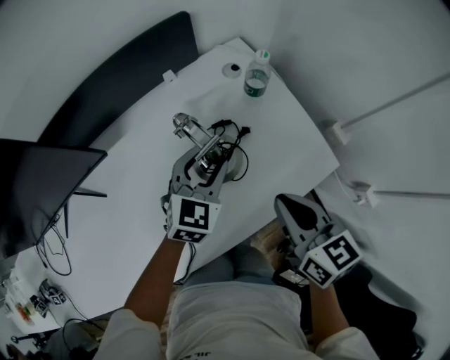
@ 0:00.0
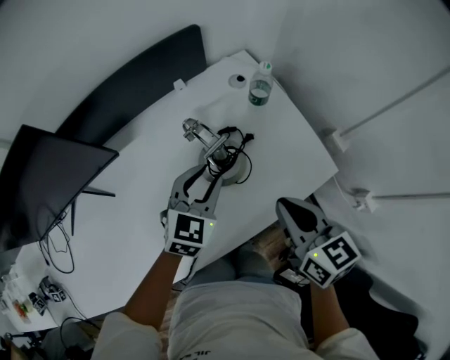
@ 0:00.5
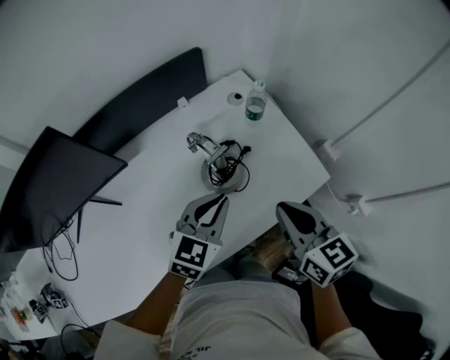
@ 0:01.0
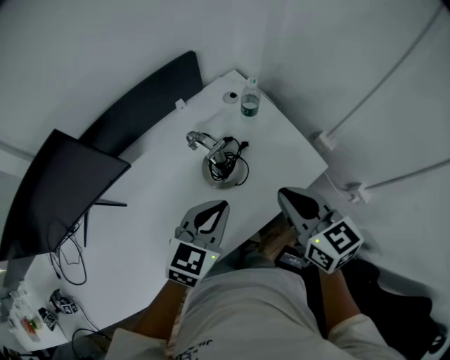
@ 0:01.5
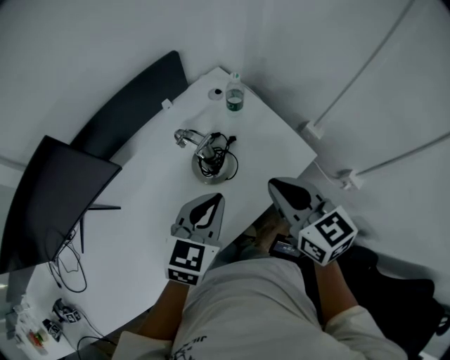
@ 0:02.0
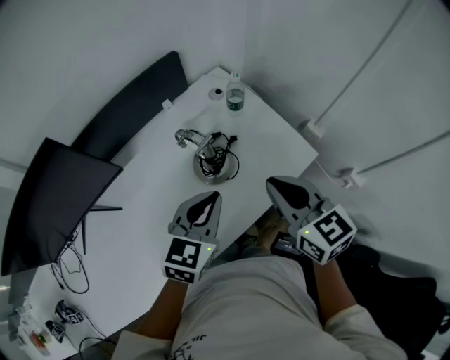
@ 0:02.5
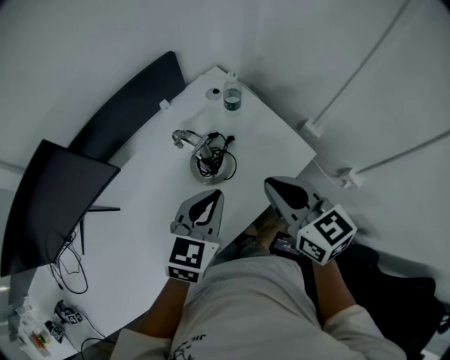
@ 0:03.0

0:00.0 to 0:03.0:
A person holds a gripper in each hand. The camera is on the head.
0:00.0 to 0:01.5: The right gripper travels upward by approximately 10 cm; the left gripper is displaced backward and upward by about 15 cm, and closes its fingers.
0:01.5 to 0:03.0: The grippers move only a little.

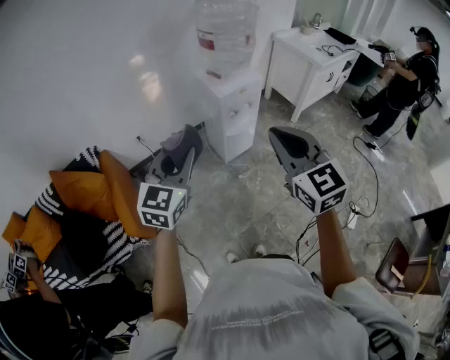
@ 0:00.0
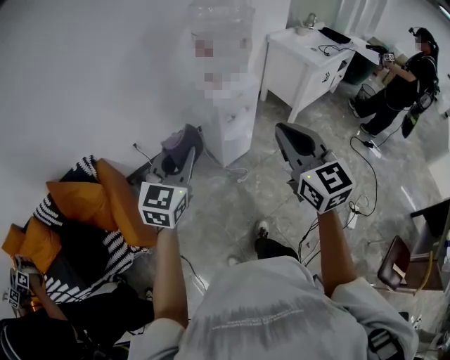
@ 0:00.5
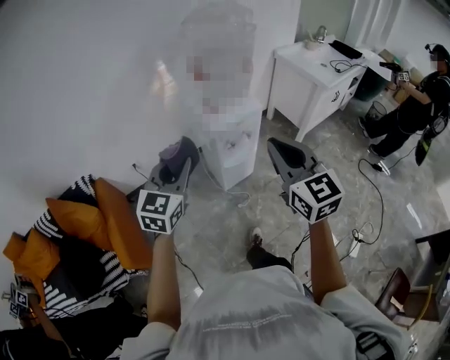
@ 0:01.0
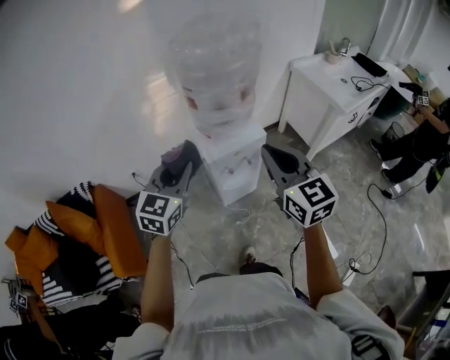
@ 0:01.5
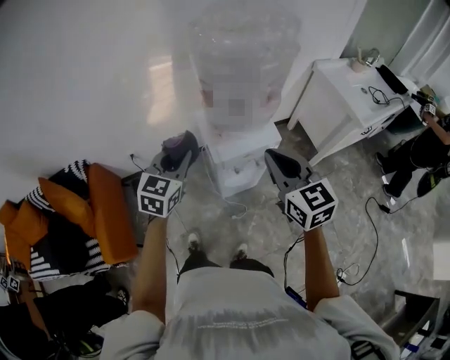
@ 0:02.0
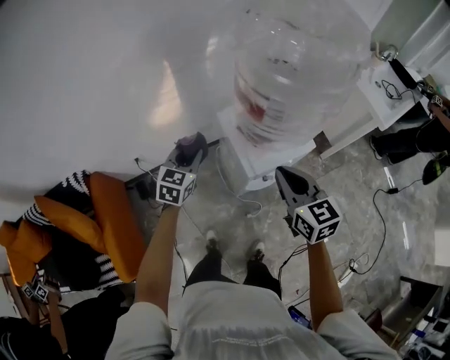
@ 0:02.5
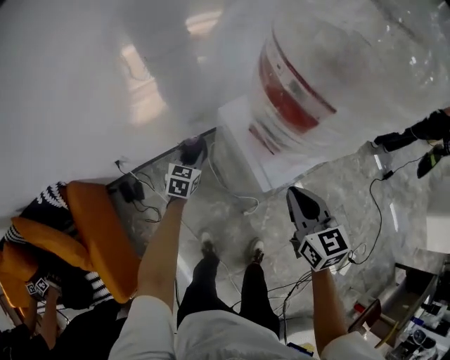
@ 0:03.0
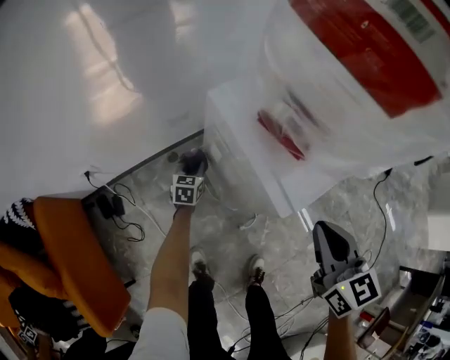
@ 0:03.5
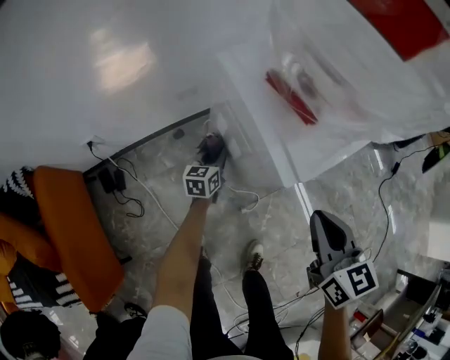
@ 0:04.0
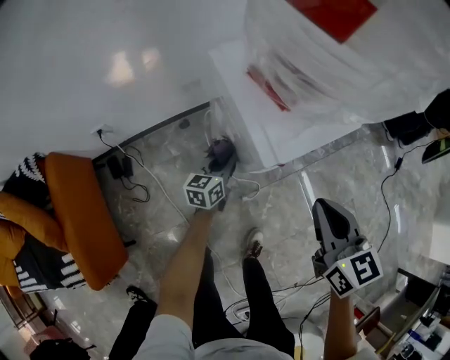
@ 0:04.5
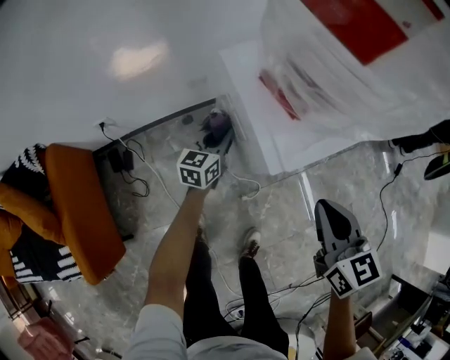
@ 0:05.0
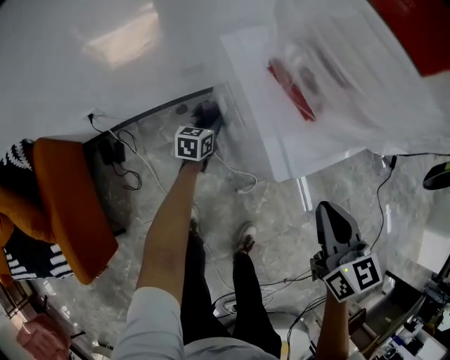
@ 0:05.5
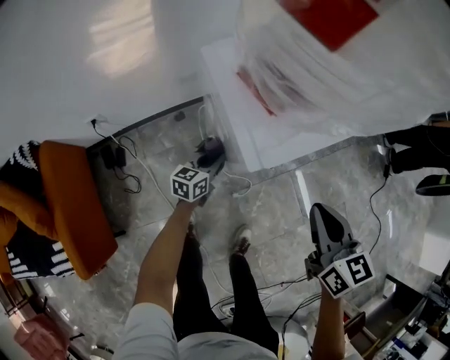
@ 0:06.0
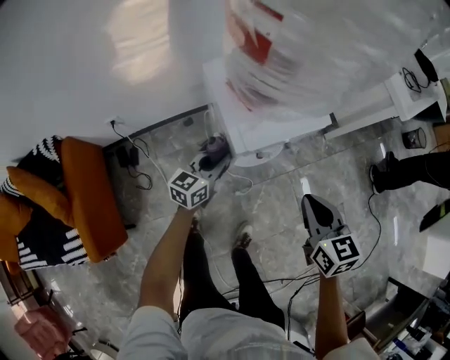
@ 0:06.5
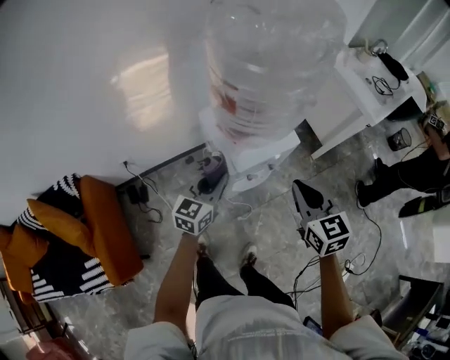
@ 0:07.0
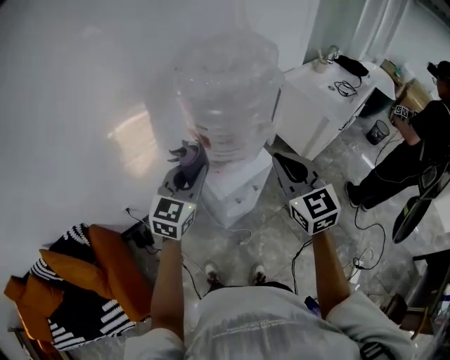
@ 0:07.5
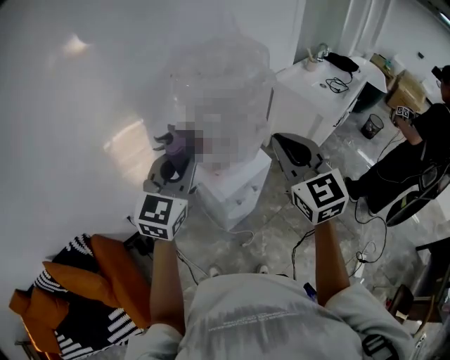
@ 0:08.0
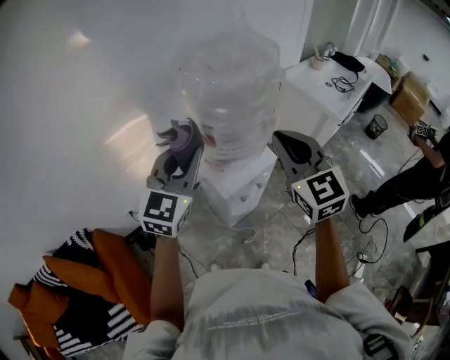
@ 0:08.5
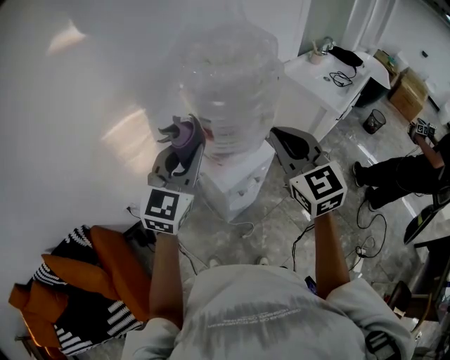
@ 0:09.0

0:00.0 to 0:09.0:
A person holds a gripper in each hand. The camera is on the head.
0:00.0 to 0:02.0: Both grippers travel together forward, some 40 cm.
0:02.0 to 0:04.5: The left gripper shifts some 50 cm downward, and rotates roughly 40 degrees. Meanwhile the right gripper goes roughly 30 cm downward, and swivels about 20 degrees.
0:04.5 to 0:07.0: The right gripper shifts roughly 15 cm upward, while the left gripper moves up and down over some 40 cm, changing direction 2 times, and turns by some 20 degrees.
0:07.0 to 0:09.0: Both grippers move upward, approximately 25 cm. The left gripper changes its angle by about 30 degrees; the right gripper turns by approximately 20 degrees.

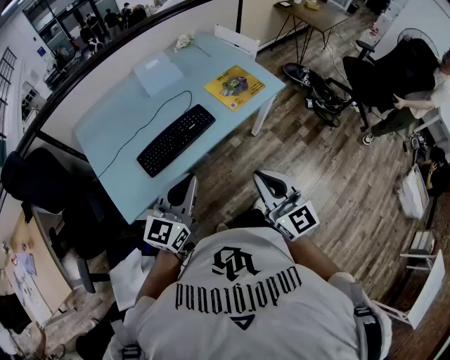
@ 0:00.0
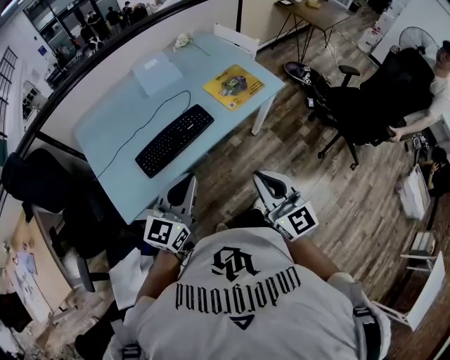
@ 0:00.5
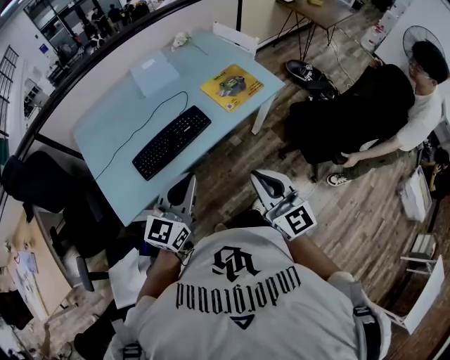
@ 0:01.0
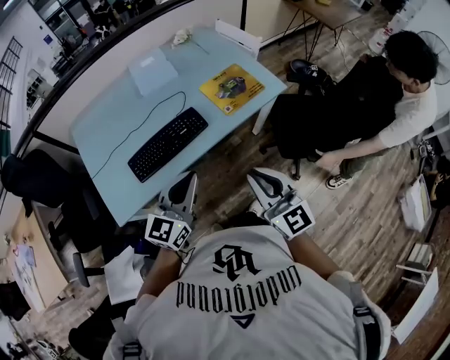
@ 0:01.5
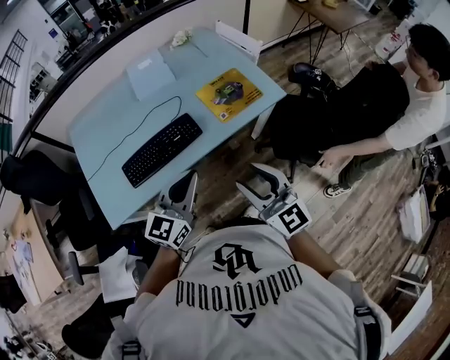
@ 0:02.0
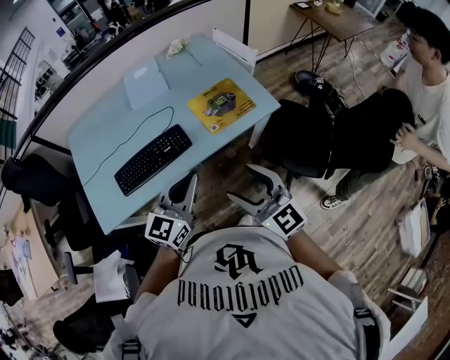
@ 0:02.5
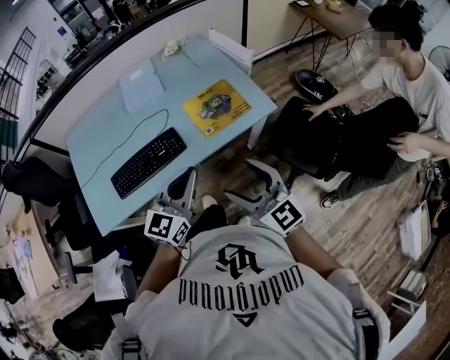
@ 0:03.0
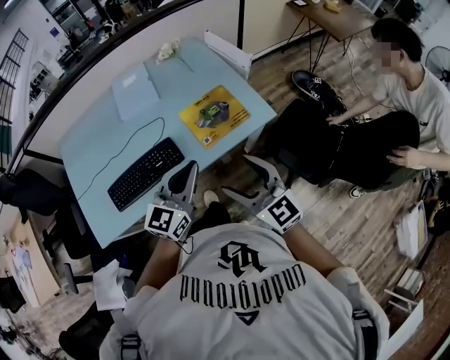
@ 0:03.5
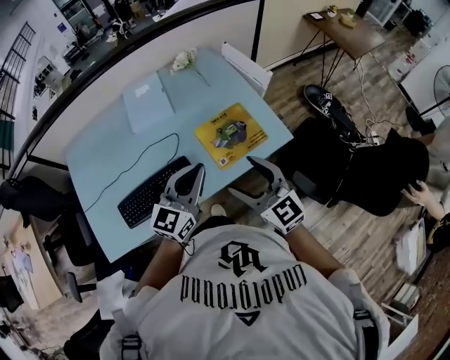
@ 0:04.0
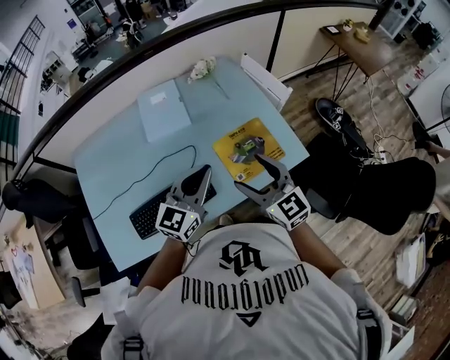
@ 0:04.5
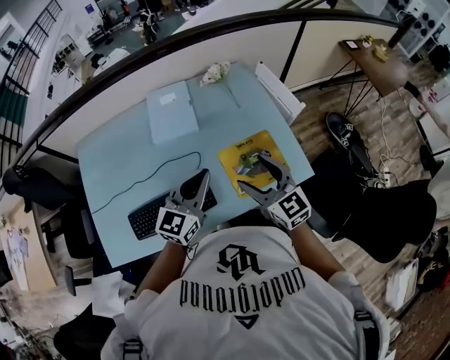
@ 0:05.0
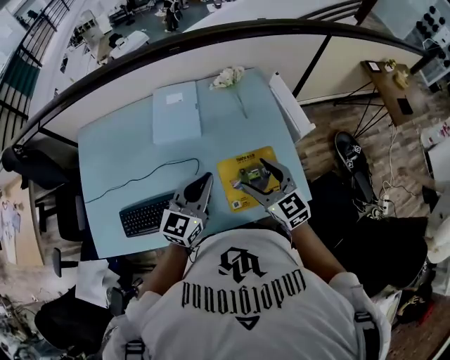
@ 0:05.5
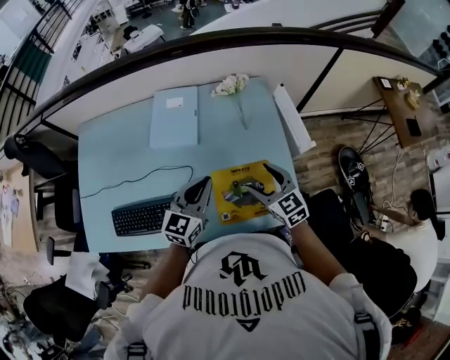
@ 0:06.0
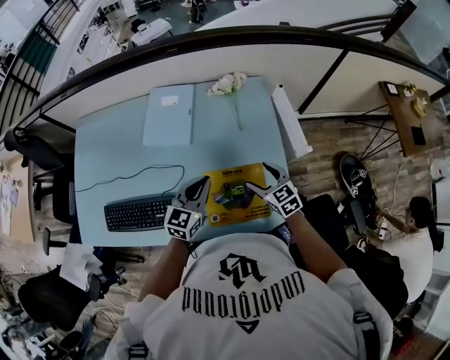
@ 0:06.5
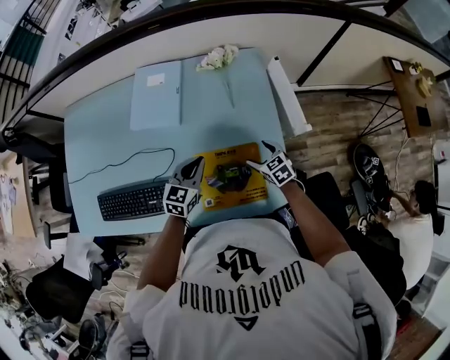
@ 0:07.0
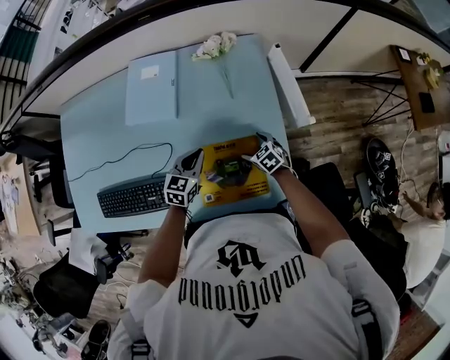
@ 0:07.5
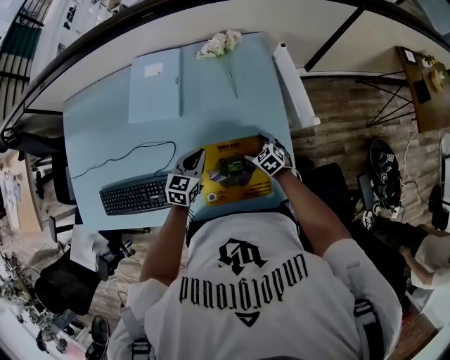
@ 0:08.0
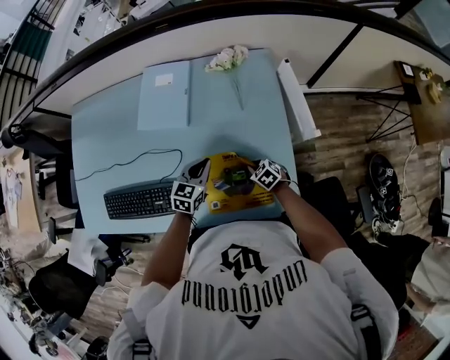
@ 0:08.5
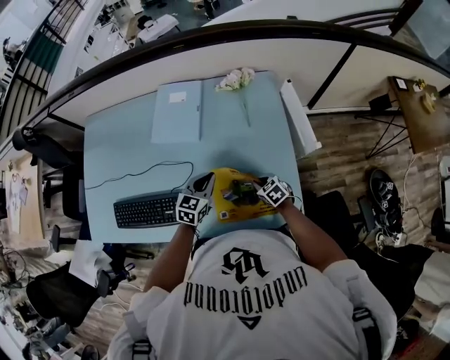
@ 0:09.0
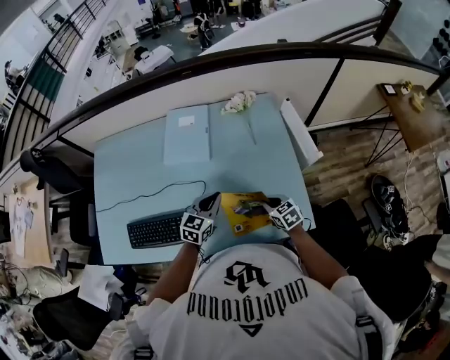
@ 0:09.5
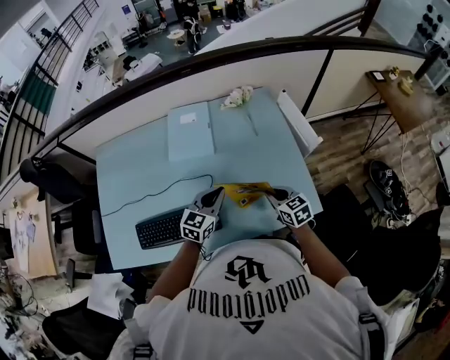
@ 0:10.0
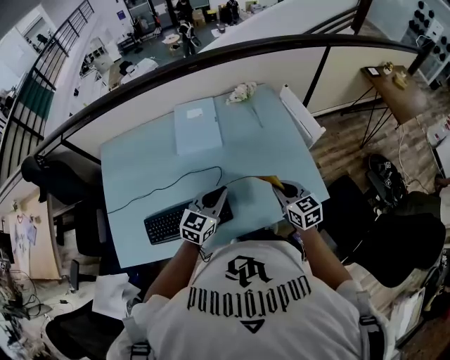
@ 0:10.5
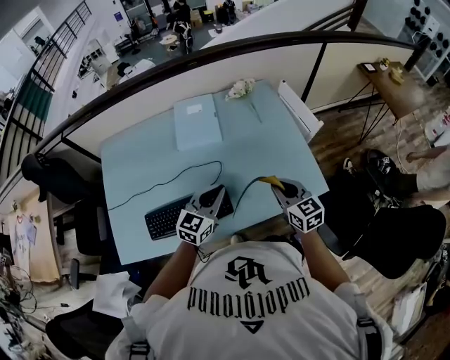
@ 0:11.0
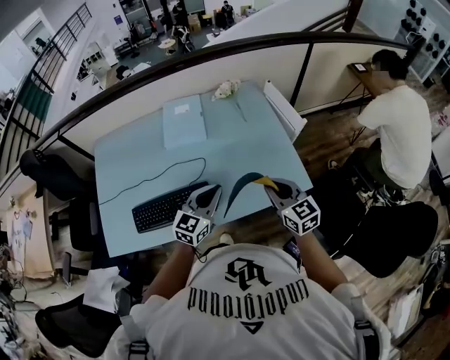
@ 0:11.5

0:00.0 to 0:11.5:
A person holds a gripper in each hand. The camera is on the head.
0:00.0 to 0:02.0: The right gripper shifts approximately 15 cm forward and to the right, and opens its fingers, while the left gripper shifts approximately 15 cm to the right and forward.
0:02.0 to 0:04.0: The two grippers go roughly 25 cm forward. The right gripper opens.
0:04.0 to 0:06.0: The right gripper shifts approximately 30 cm forward and downward, and turns by about 20 degrees. The left gripper moves forward, roughly 20 cm, and rotates approximately 20 degrees.
0:06.0 to 0:07.5: Both grippers move downward, roughly 25 cm. The left gripper rotates roughly 20 degrees; the right gripper turns by approximately 30 degrees.
0:07.5 to 0:09.5: The left gripper moves upward, to the left and backward, some 15 cm; the right gripper moves upward, backward and to the left, about 20 cm, and closes.
0:09.5 to 0:11.5: The left gripper is displaced backward and upward by some 20 cm. Meanwhile the right gripper is displaced upward and backward by roughly 30 cm, and changes its angle by roughly 30 degrees.

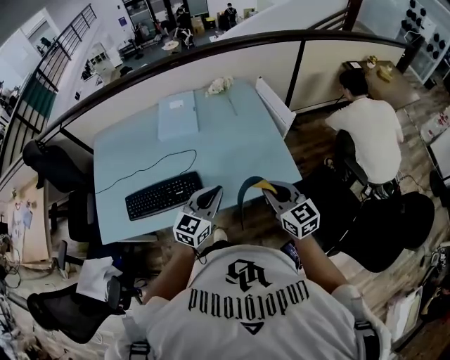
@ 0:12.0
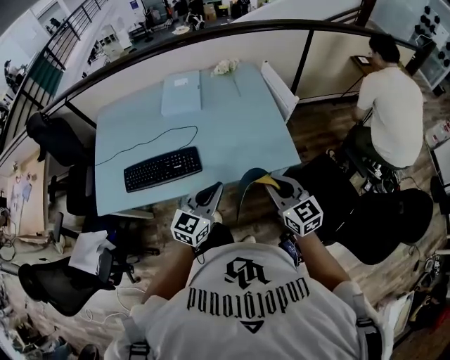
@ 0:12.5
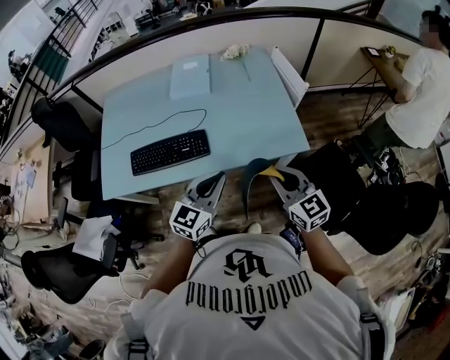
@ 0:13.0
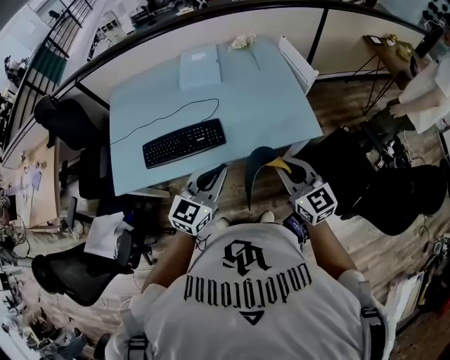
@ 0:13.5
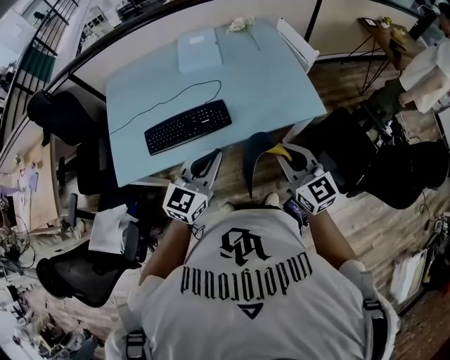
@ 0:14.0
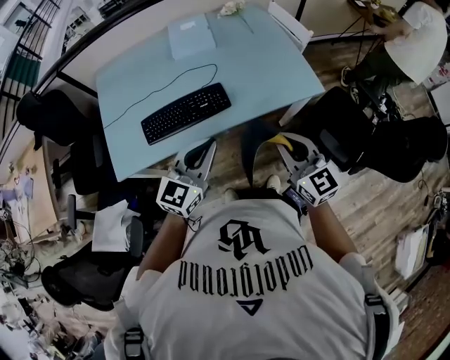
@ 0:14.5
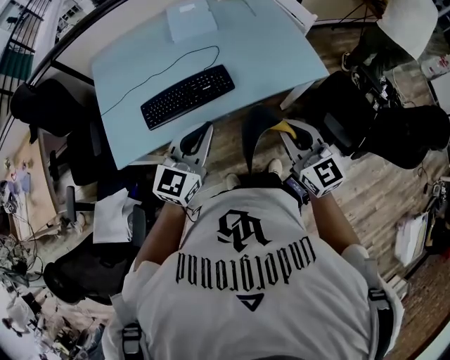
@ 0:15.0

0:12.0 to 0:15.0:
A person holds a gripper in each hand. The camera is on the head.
0:12.0 to 0:13.5: The two grippers go about 15 cm backward and to the left.
0:13.5 to 0:15.0: The right gripper moves to the left and backward, roughly 15 cm, while the left gripper shifts about 15 cm to the left.
